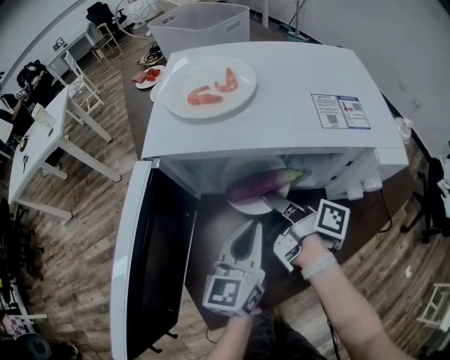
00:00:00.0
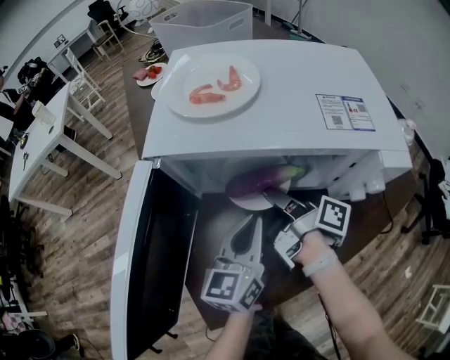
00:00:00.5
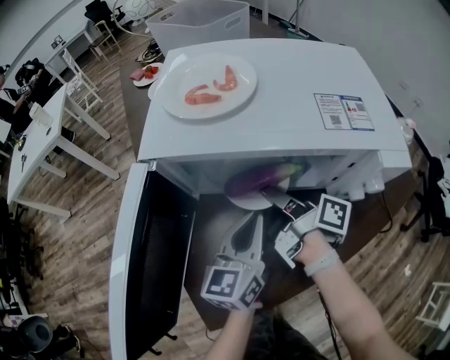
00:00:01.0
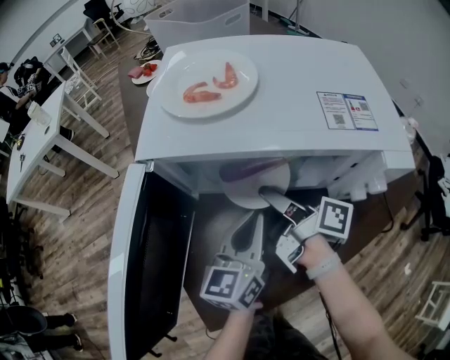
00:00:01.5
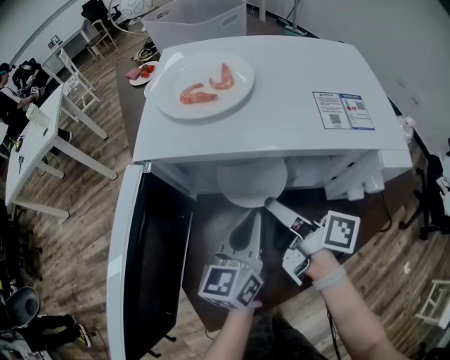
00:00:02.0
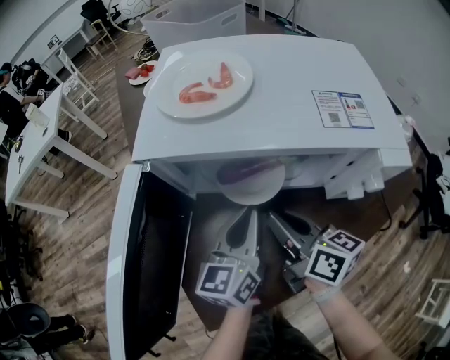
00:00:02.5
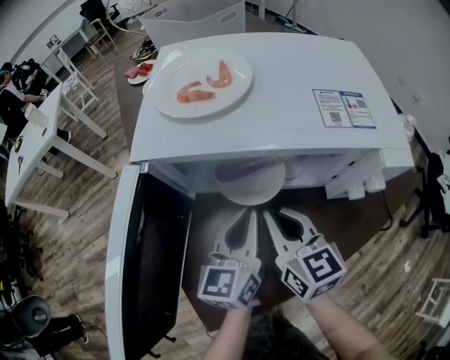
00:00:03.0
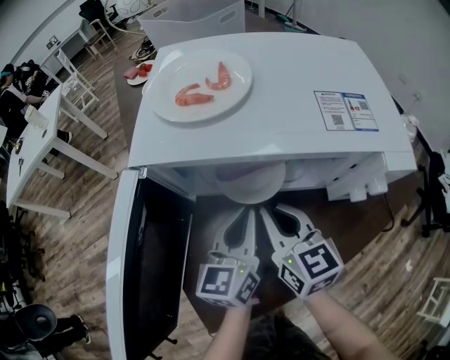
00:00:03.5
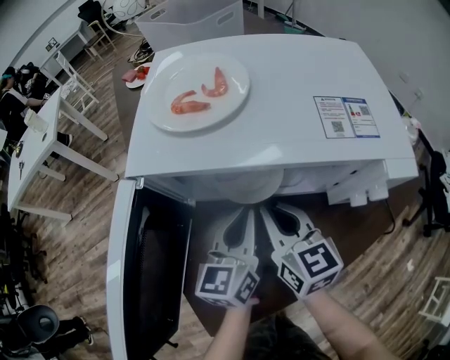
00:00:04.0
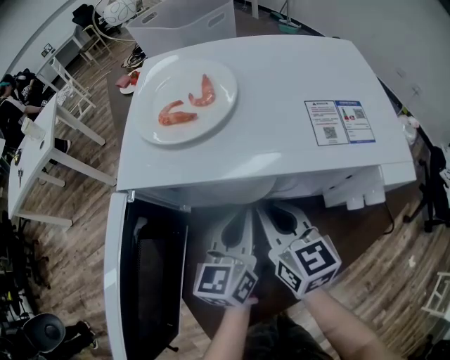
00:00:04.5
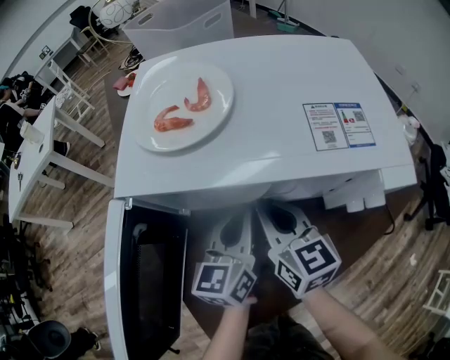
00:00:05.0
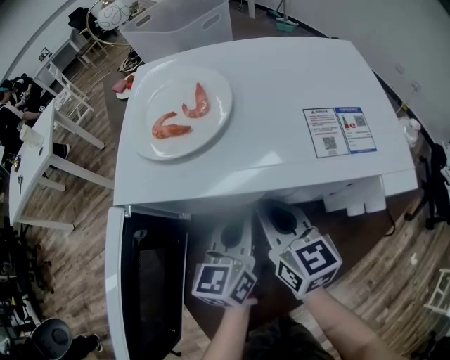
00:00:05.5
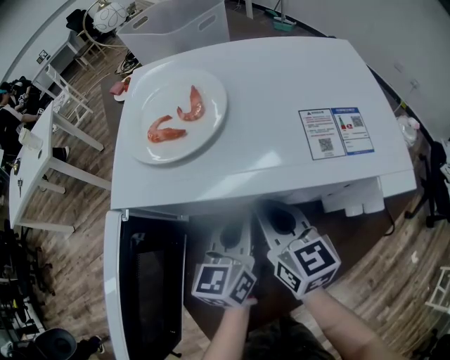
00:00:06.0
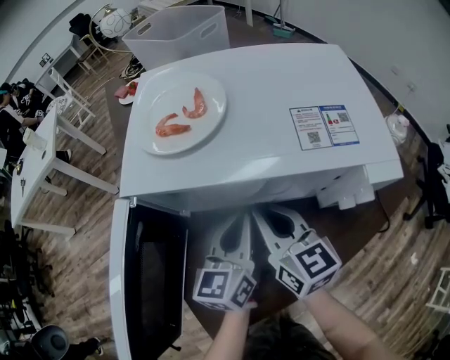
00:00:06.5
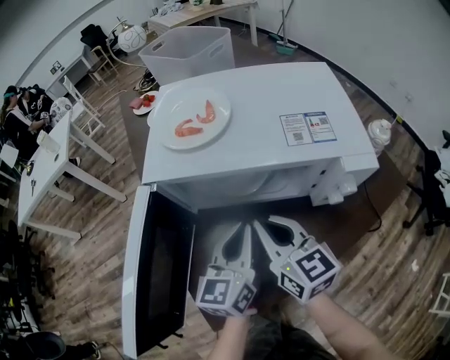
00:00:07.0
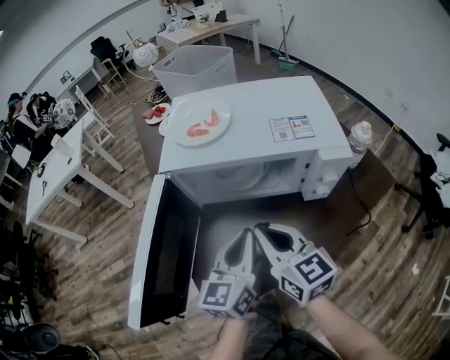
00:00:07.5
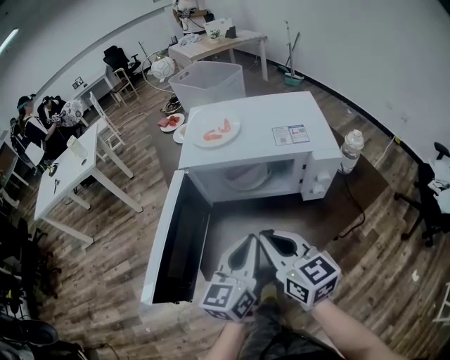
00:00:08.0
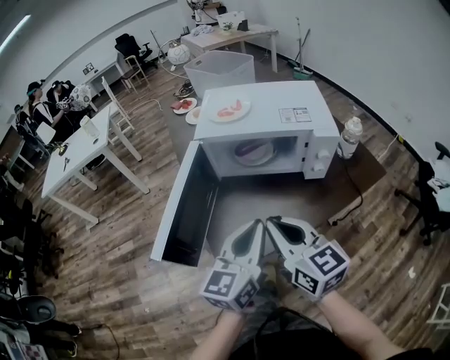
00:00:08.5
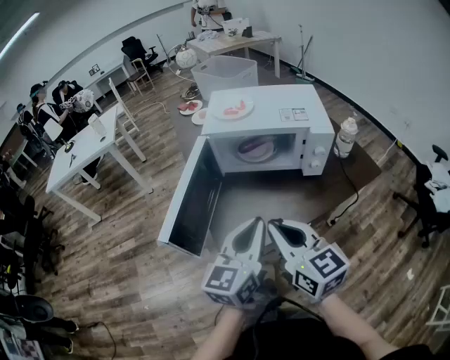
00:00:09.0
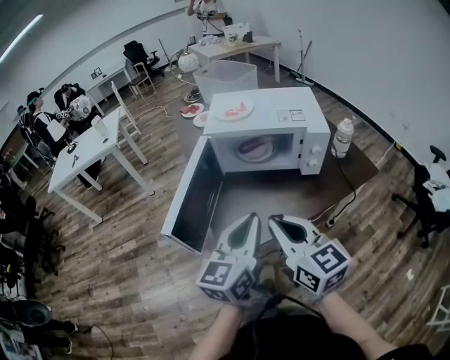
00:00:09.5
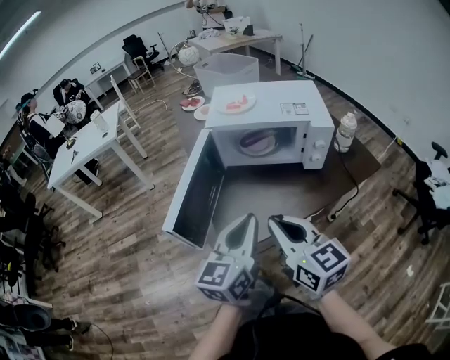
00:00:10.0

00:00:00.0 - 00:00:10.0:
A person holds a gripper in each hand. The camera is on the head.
00:00:00.0 - 00:00:02.0: The grippers move only a little.
00:00:02.0 - 00:00:04.0: The right gripper rotates around the line of its fingers by about 60 degrees, counterclockwise from behind, and closes up.
00:00:04.0 - 00:00:06.0: There are only small adjustments of the grippers.
00:00:06.0 - 00:00:08.0: Both grippers move backward and upward, some 20 cm.
00:00:08.0 - 00:00:10.0: Both grippers move backward and upward, about 15 cm.

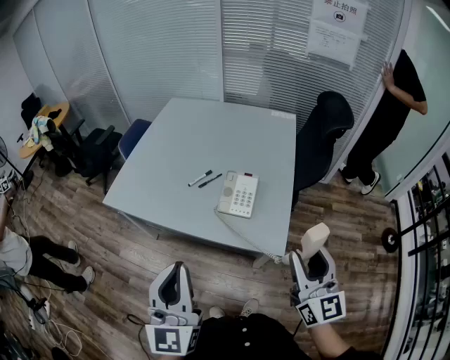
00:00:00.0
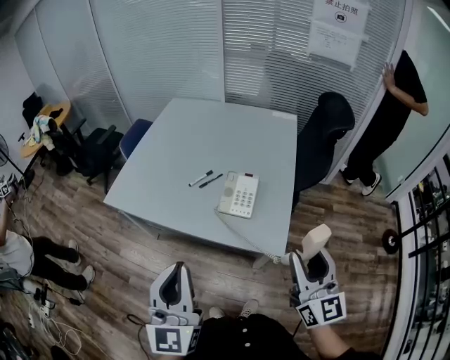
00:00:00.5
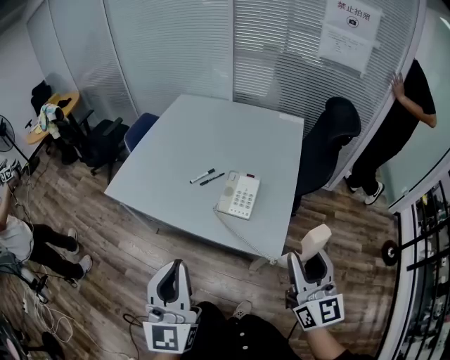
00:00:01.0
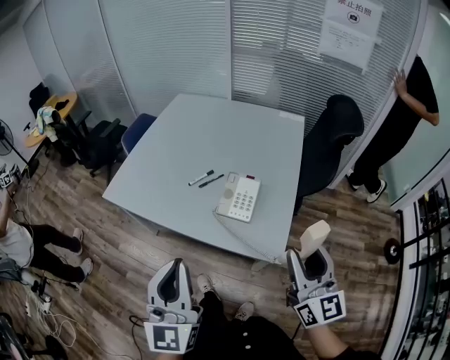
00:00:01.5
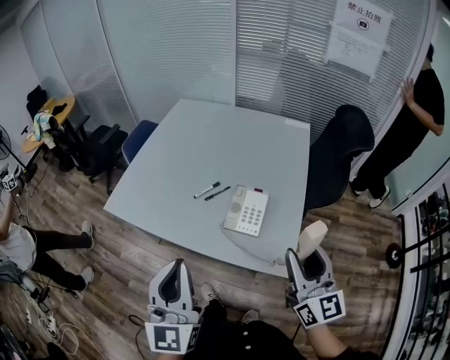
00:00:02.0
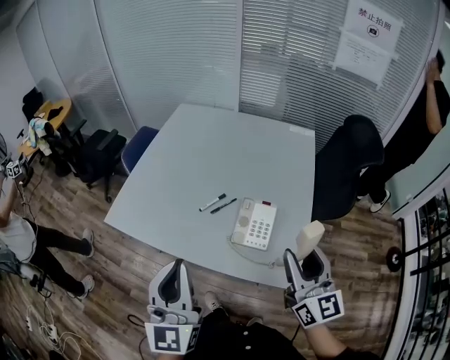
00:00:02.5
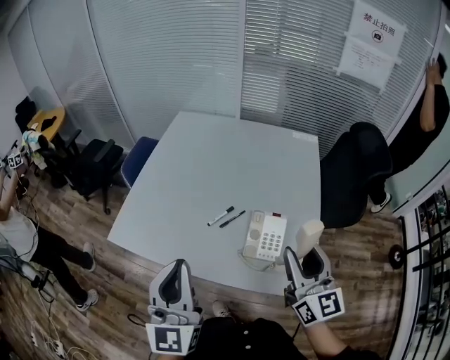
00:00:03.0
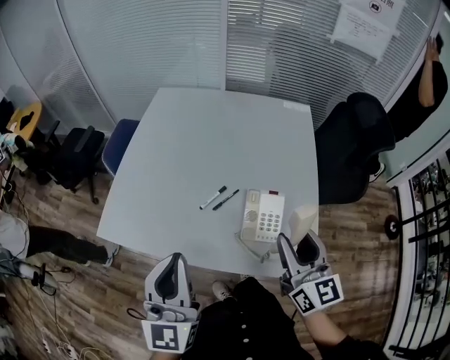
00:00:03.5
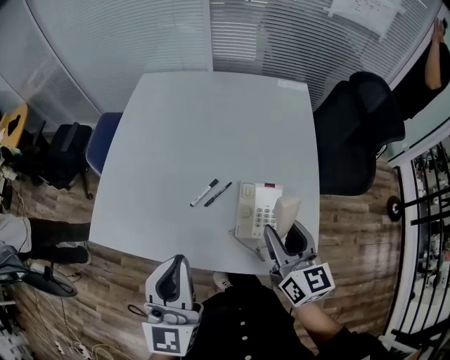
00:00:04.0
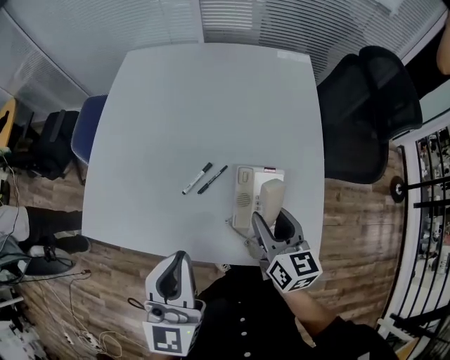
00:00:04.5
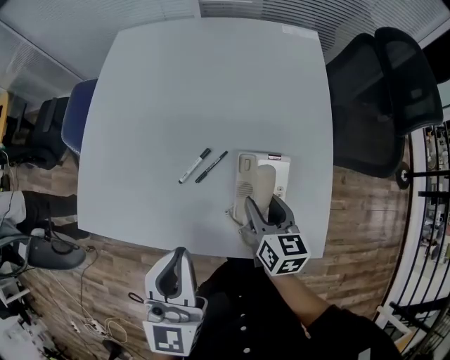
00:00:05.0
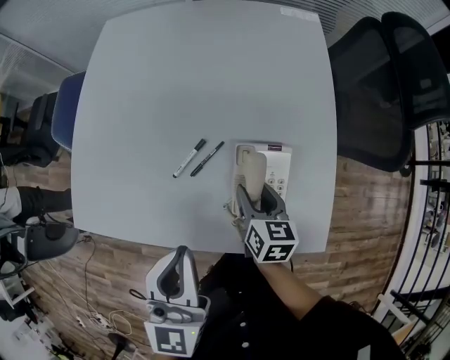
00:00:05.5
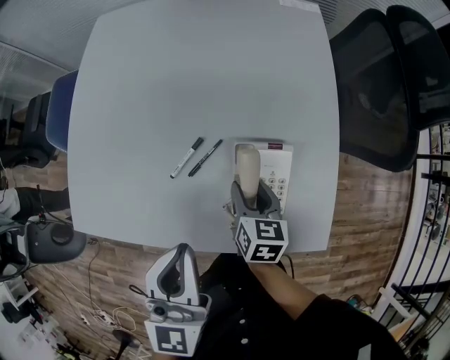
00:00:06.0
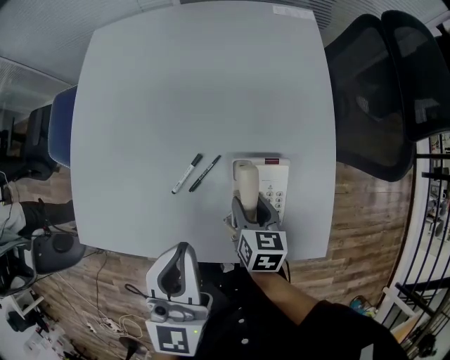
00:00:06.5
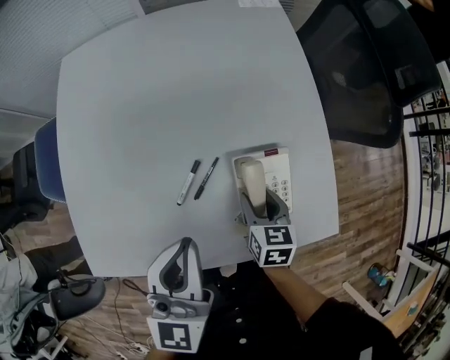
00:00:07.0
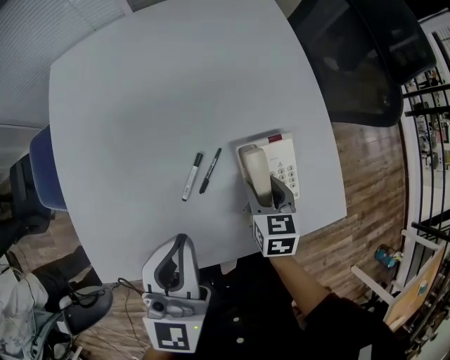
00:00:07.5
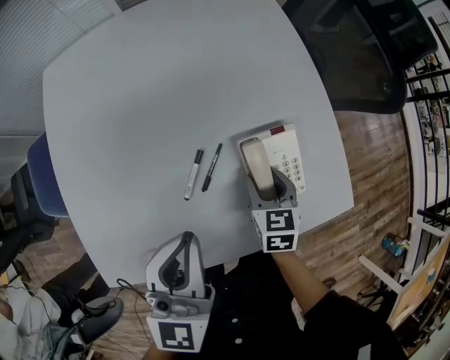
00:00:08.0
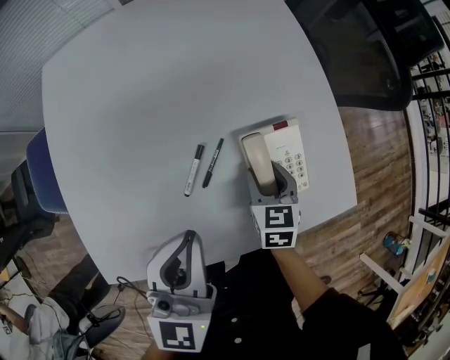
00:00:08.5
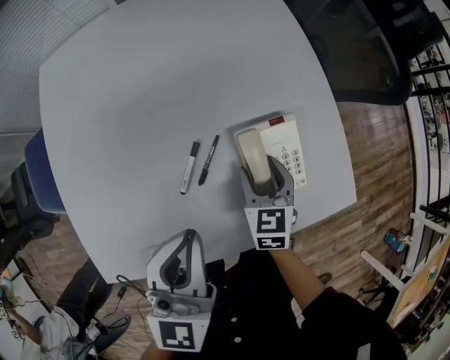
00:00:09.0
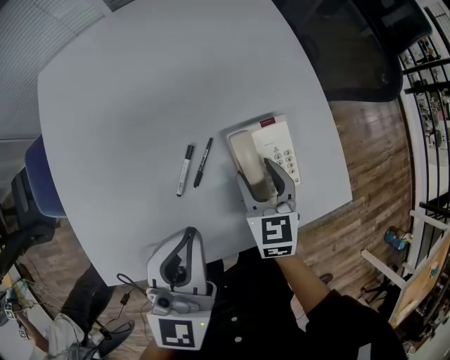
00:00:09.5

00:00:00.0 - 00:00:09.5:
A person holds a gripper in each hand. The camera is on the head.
00:00:00.0 - 00:00:02.0: The grippers both shift forward by roughly 10 cm.
00:00:02.0 - 00:00:04.0: The left gripper is displaced forward by about 20 cm, while the right gripper moves forward, to the left and downward, some 20 cm.
00:00:04.0 - 00:00:05.5: The left gripper shifts some 5 cm downward; the right gripper moves downward, approximately 20 cm, and changes its angle by about 30 degrees.
00:00:05.5 - 00:00:07.5: The left gripper travels forward and to the left by about 10 cm, and changes its angle by some 20 degrees. Meanwhile the right gripper turns by some 20 degrees.
00:00:07.5 - 00:00:09.5: The grippers move only a little.

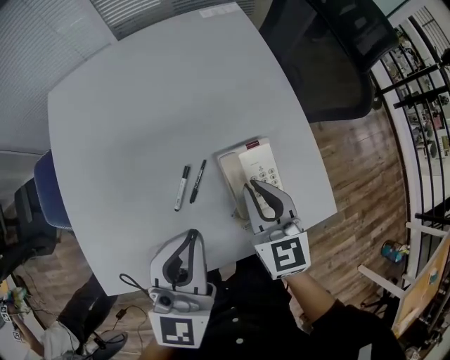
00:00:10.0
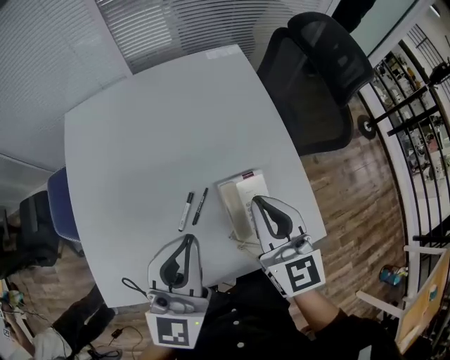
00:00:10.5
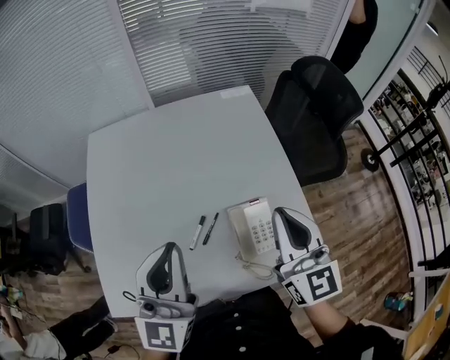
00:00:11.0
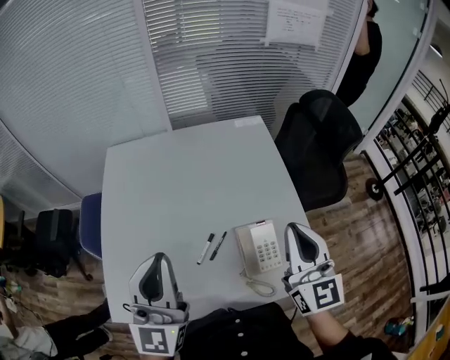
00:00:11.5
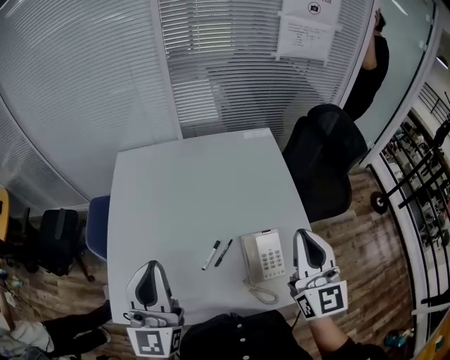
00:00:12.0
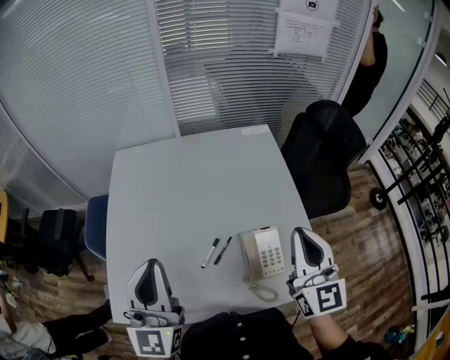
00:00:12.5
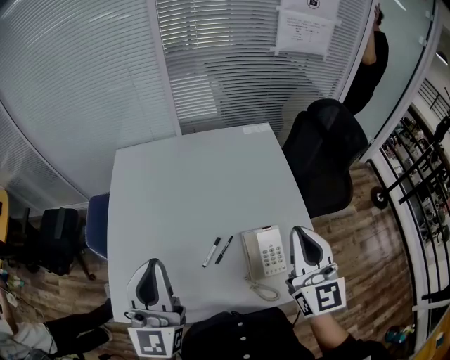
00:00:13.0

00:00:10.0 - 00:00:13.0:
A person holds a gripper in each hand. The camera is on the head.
00:00:10.0 - 00:00:11.5: The left gripper moves upward and to the left, about 20 cm, and changes its angle by about 30 degrees, while the right gripper heads upward, covering roughly 20 cm, and changes its angle by approximately 20 degrees.
00:00:11.5 - 00:00:13.0: There are only small adjustments of the grippers.

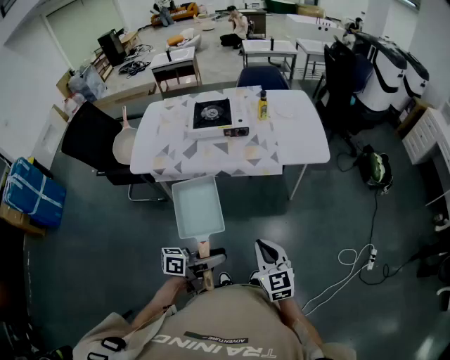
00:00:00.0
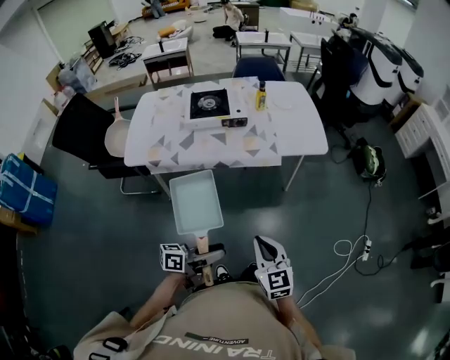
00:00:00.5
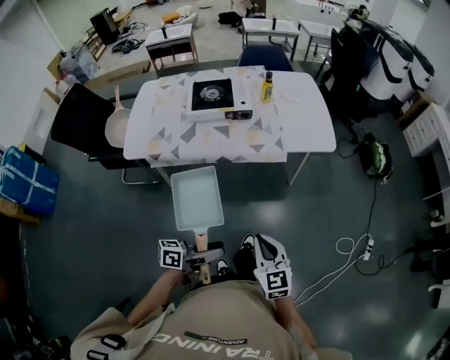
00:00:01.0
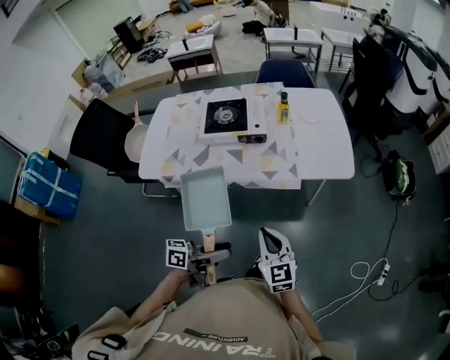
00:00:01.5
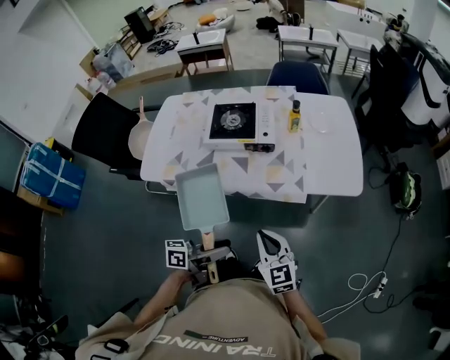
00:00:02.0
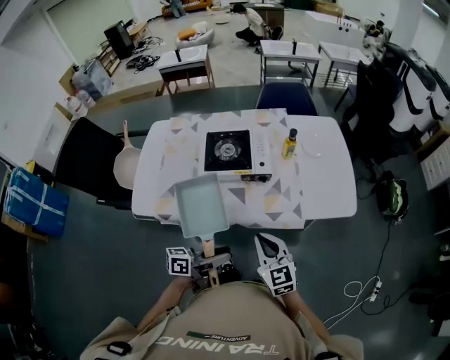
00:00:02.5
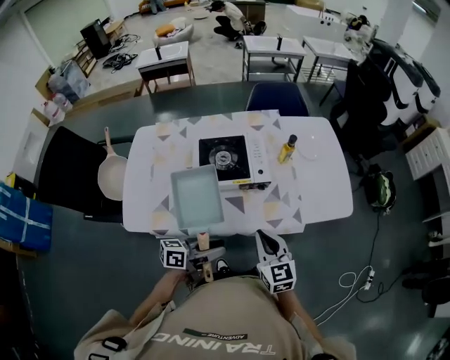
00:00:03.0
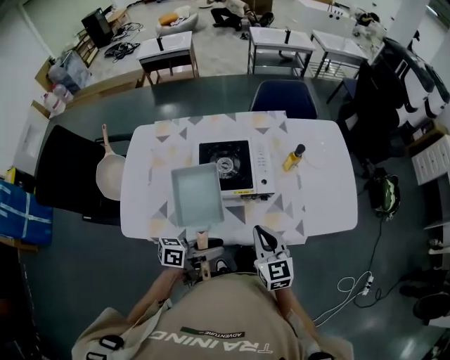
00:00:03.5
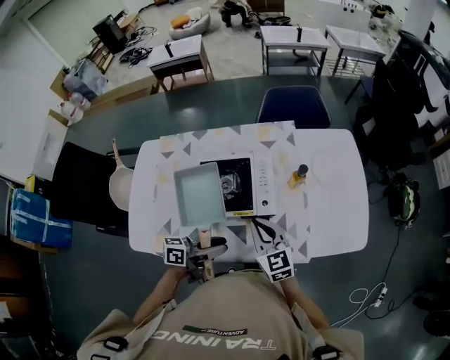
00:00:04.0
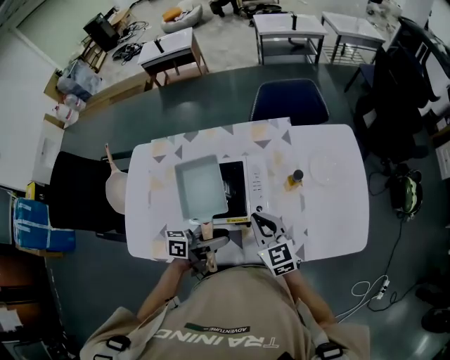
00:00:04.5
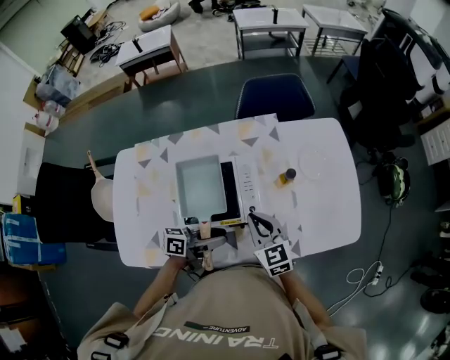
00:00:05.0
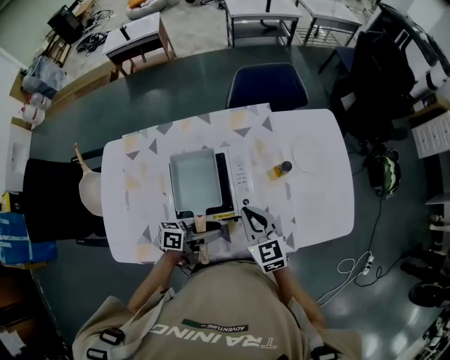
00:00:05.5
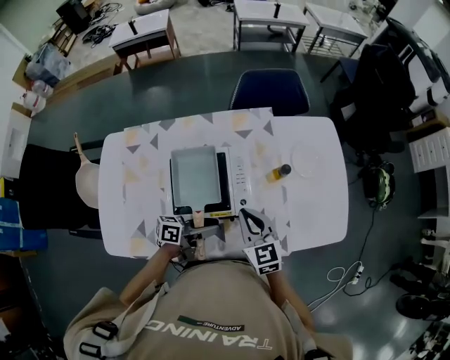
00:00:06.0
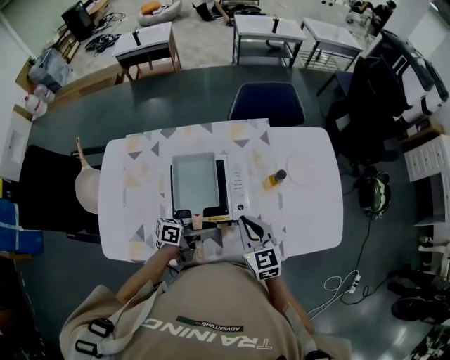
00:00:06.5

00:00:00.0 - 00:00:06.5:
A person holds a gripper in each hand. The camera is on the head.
00:00:00.0 - 00:00:02.0: Both grippers travel together forward and to the left, roughly 20 cm.
00:00:02.0 - 00:00:04.5: Both grippers travel together forward and to the left, approximately 40 cm.
00:00:04.5 - 00:00:06.5: The left gripper shifts about 5 cm downward.
